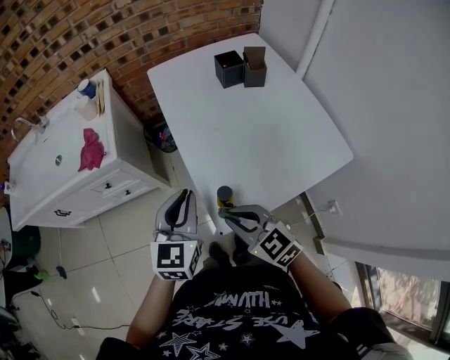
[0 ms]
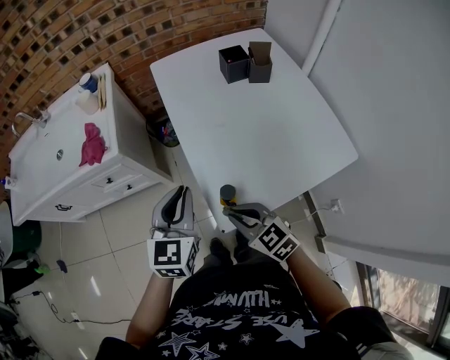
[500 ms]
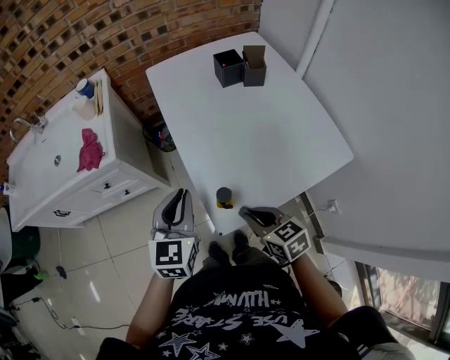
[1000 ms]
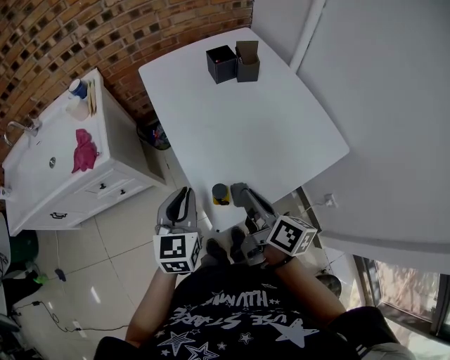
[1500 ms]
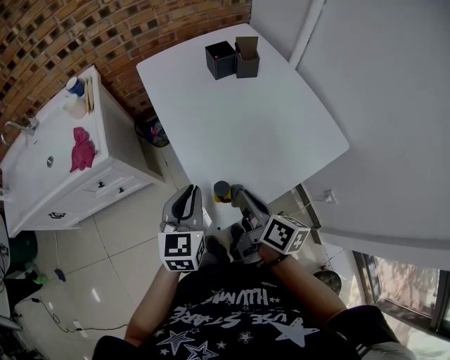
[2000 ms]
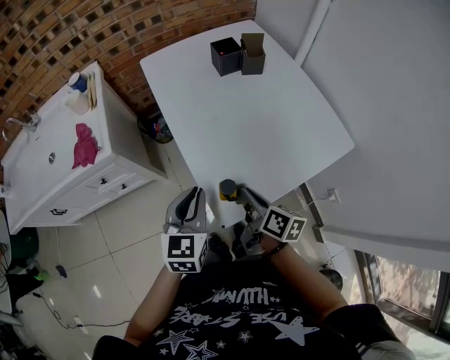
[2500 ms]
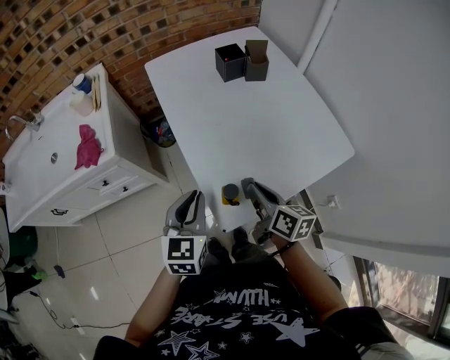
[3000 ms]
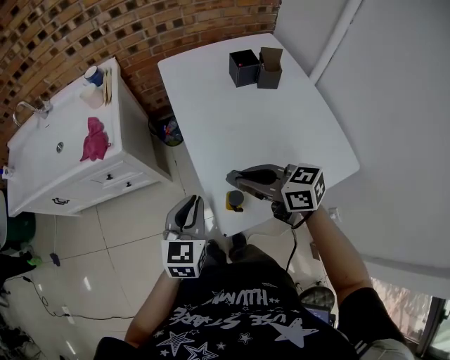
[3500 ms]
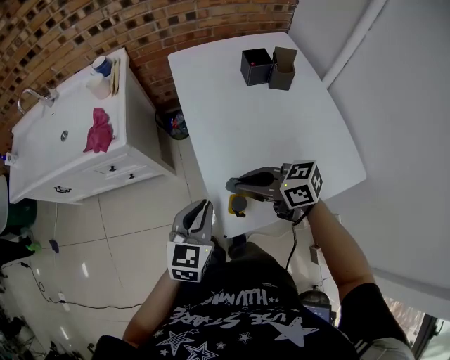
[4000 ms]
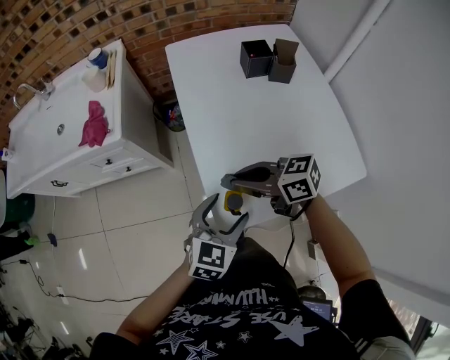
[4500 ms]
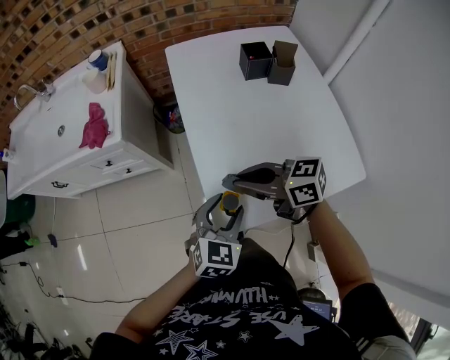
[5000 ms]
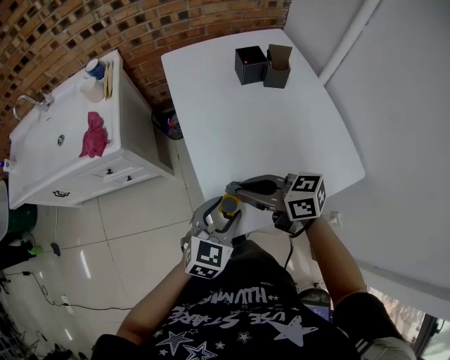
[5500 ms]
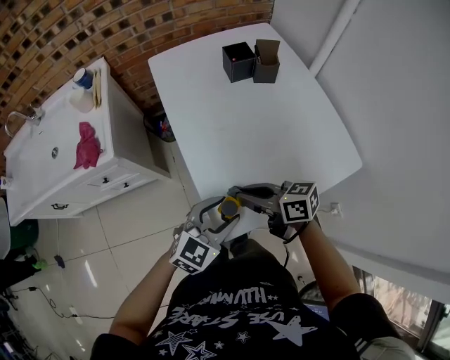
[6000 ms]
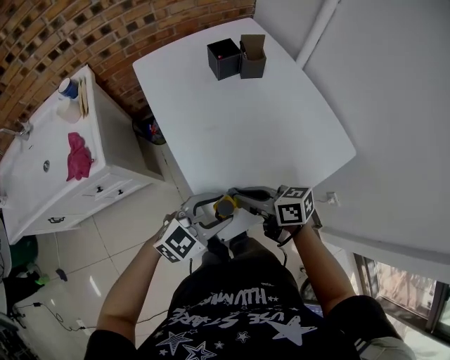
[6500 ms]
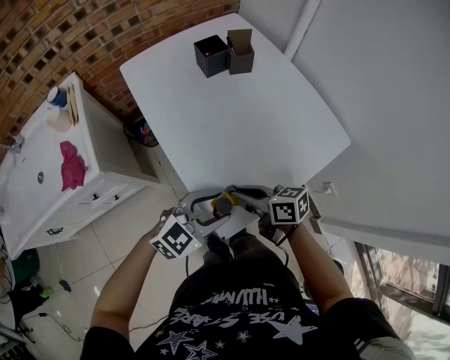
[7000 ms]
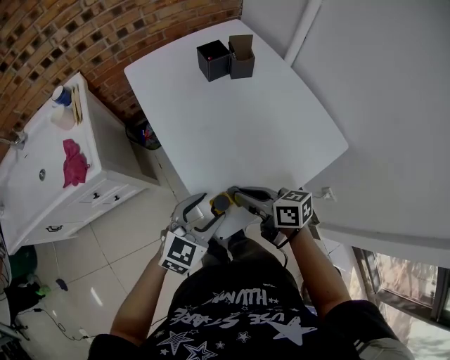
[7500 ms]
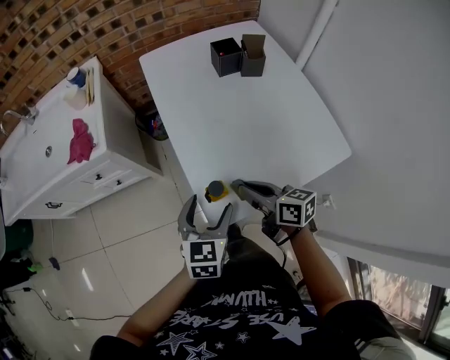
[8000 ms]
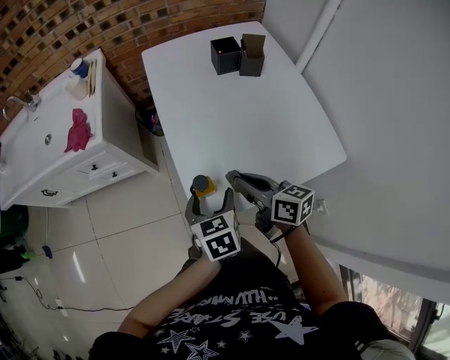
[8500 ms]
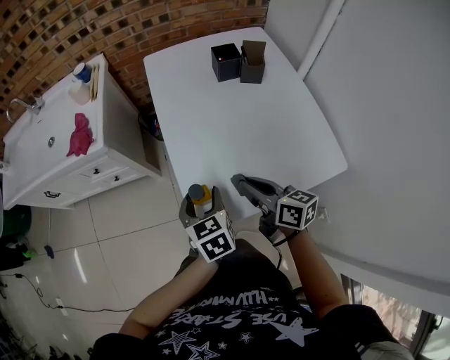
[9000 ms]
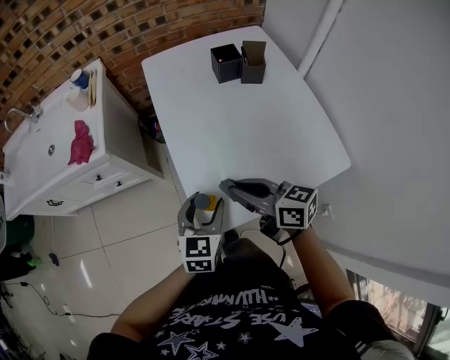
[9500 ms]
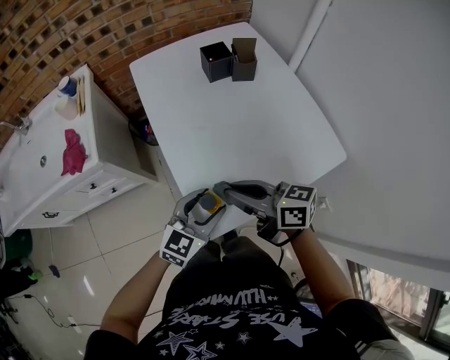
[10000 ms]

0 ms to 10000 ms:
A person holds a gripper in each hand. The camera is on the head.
0 ms to 2000 ms: The right gripper moves to the right, roughly 10 cm, and rolls clockwise, seen from behind, by roughly 60 degrees.
2000 ms to 4000 ms: The right gripper travels downward and back again, some 5 cm each way, and changes its angle by about 70 degrees.
4000 ms to 6000 ms: The left gripper goes some 5 cm to the right, rotates roughly 30 degrees, and opens its fingers. The right gripper swivels some 20 degrees.
6000 ms to 8000 ms: The left gripper rotates about 40 degrees, and opens.
8000 ms to 10000 ms: The right gripper is displaced upward by about 5 cm; the left gripper changes its angle by some 30 degrees.

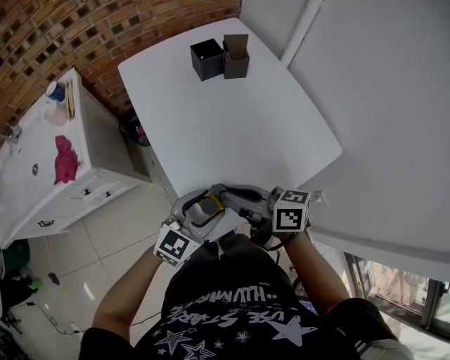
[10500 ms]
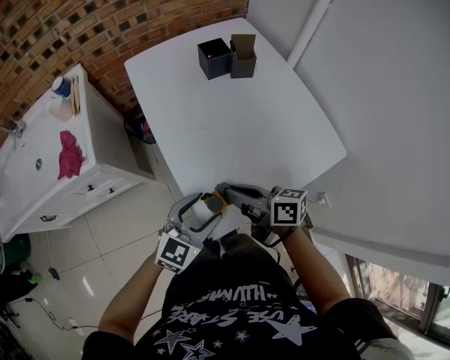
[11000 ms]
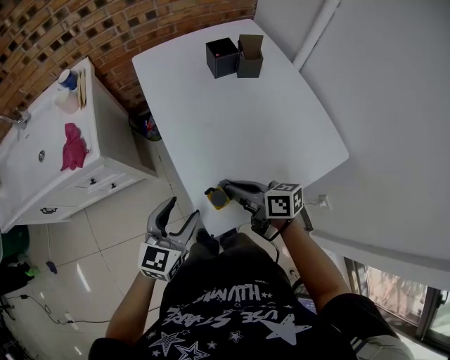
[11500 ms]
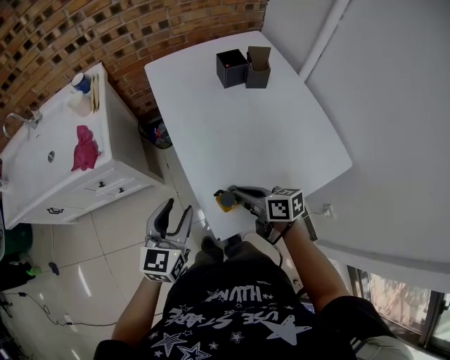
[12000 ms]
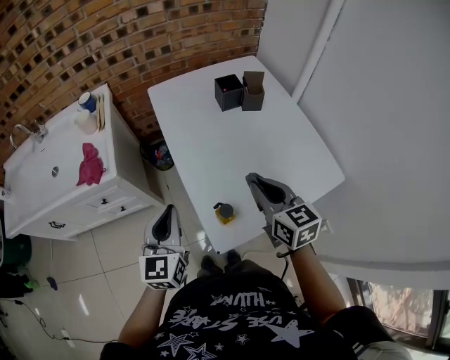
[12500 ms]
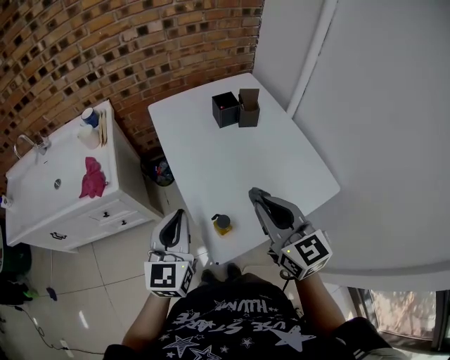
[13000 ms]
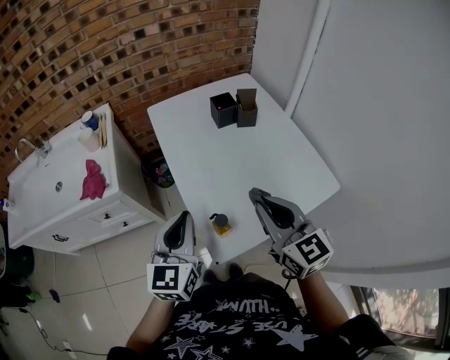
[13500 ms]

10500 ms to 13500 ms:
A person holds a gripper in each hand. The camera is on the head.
10500 ms to 12000 ms: The right gripper travels downward by roughly 10 cm, while the left gripper travels to the left by some 15 cm, and changes its angle by approximately 30 degrees.
12000 ms to 13500 ms: The right gripper goes roughly 20 cm upward, and changes its angle by approximately 50 degrees. Meanwhile the left gripper travels upward by roughly 10 cm, and closes up.

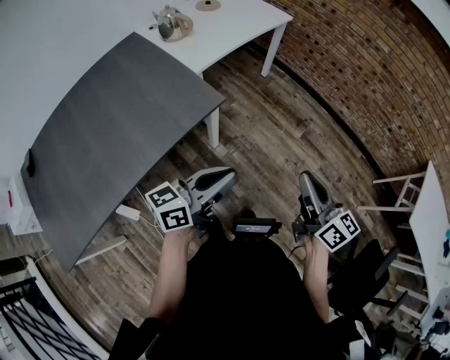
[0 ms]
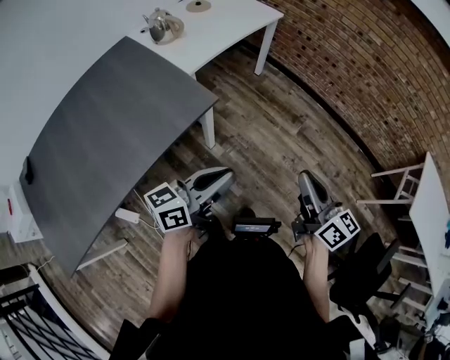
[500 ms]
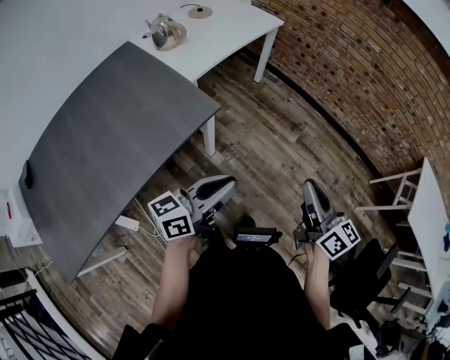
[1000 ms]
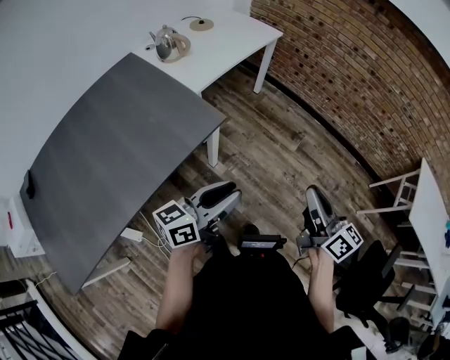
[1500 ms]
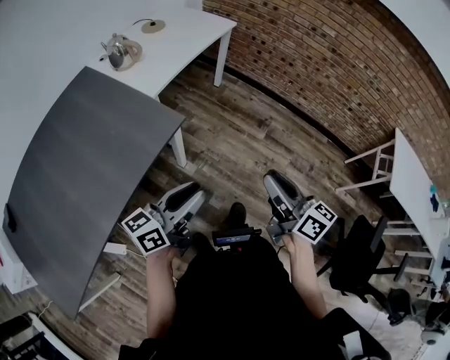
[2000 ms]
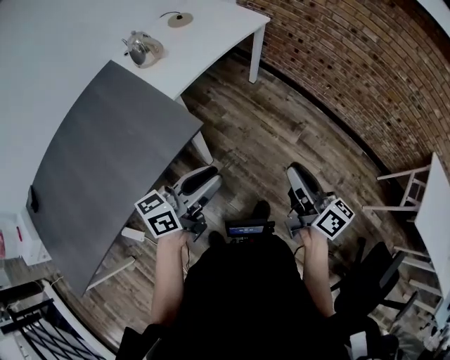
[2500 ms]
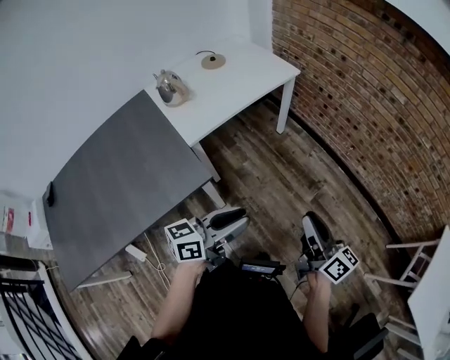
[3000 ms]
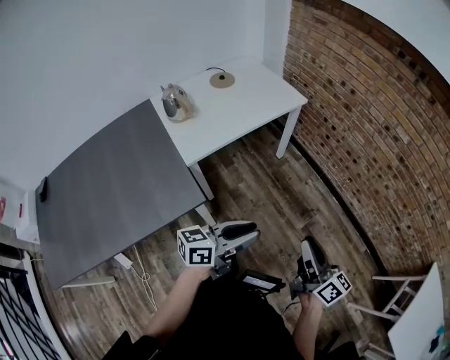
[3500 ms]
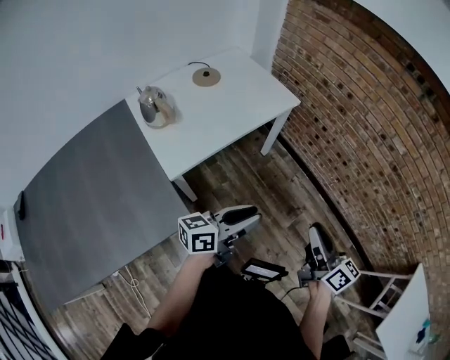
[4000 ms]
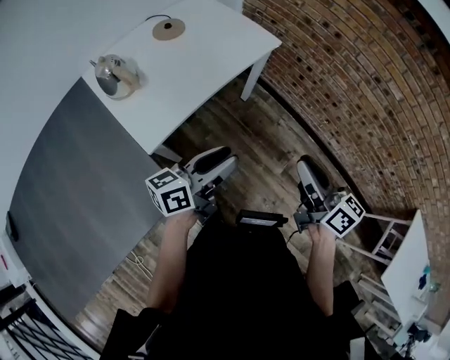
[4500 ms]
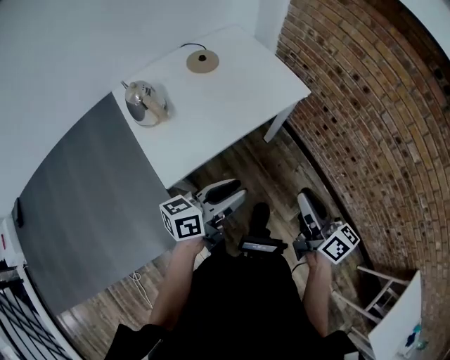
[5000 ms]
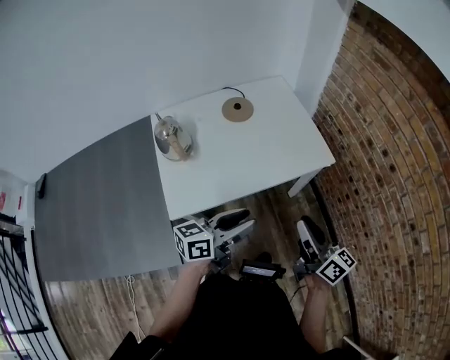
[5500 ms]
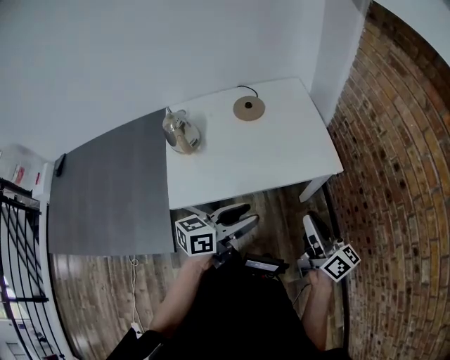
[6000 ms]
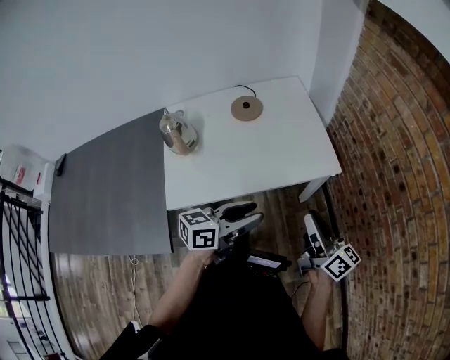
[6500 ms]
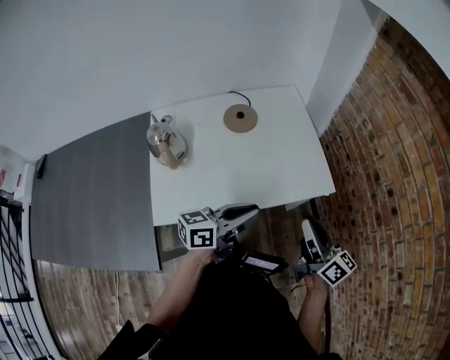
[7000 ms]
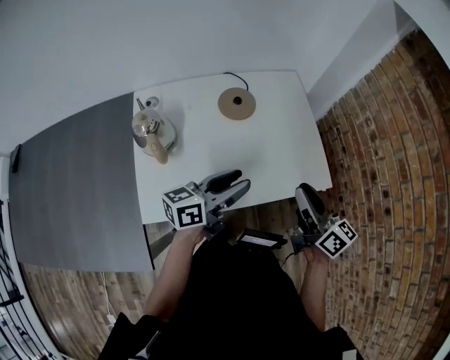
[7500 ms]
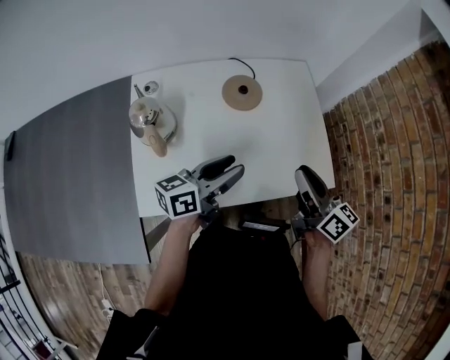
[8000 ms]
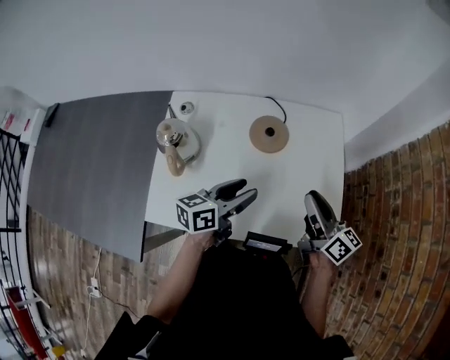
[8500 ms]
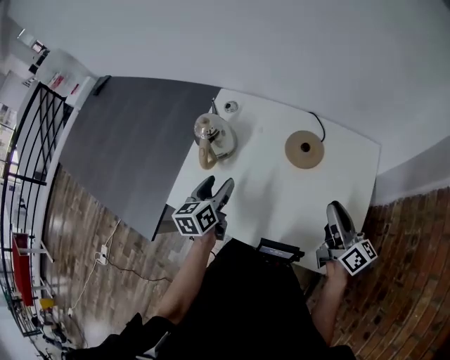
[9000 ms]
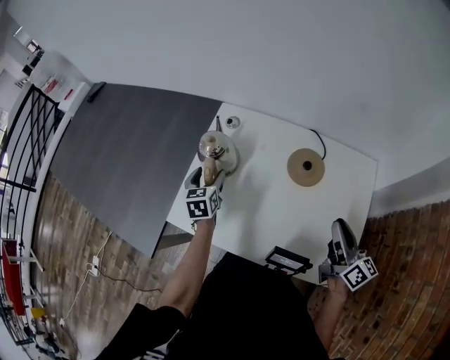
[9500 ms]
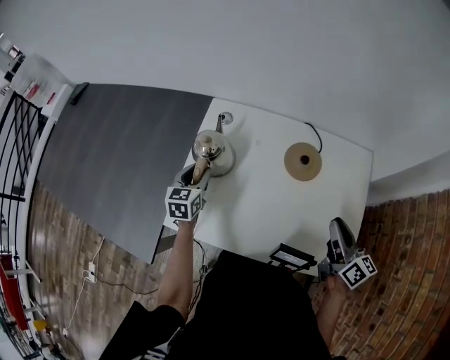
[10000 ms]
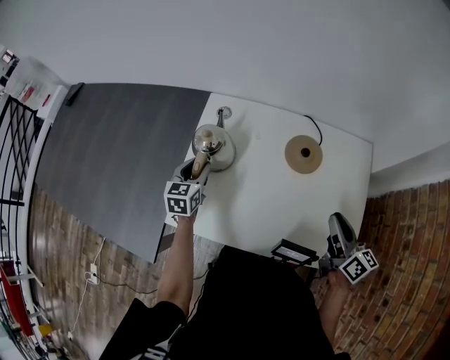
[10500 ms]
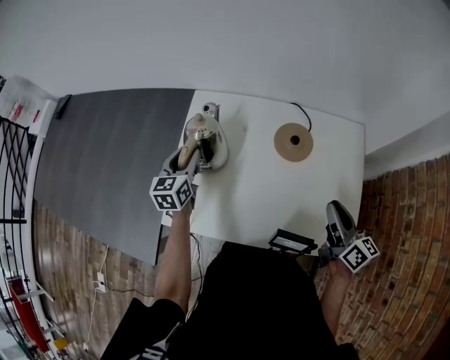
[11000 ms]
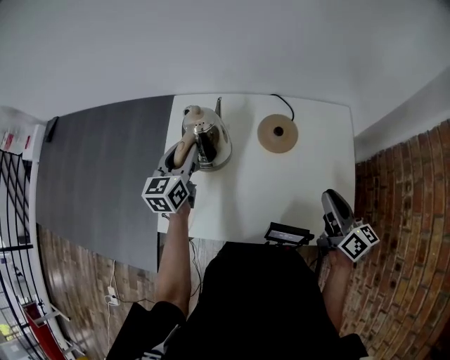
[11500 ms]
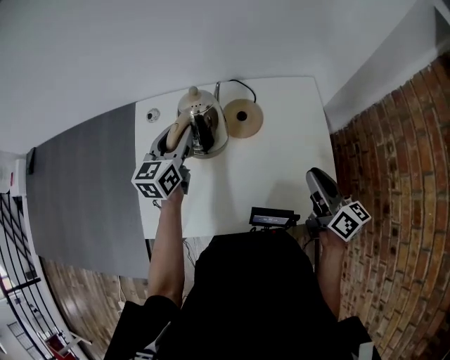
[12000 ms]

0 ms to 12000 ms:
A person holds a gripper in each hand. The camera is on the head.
0 ms to 2000 ms: The grippers move only a little.
2000 ms to 4000 ms: Both grippers move forward, roughly 35 cm.
4000 ms to 6000 ms: The left gripper ends up approximately 25 cm from where it was, and rotates roughly 30 degrees. The right gripper changes place by approximately 35 cm, and rotates roughly 30 degrees.
6000 ms to 8000 ms: Both grippers travel together forward and to the left, some 25 cm. The left gripper closes, then reopens.
8000 ms to 10000 ms: The left gripper moves roughly 30 cm, swivels some 70 degrees, and opens and closes again. Meanwhile the right gripper ends up about 10 cm from where it was.
10000 ms to 12000 ms: The right gripper changes place by approximately 5 cm, while the left gripper goes about 20 cm to the right and upward, and turns by about 30 degrees.

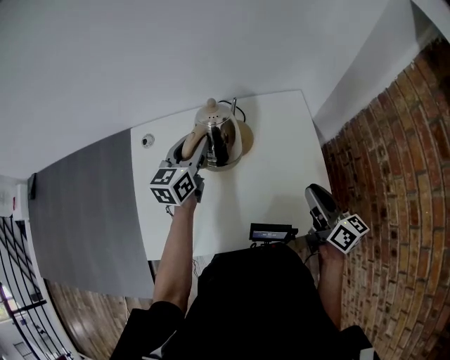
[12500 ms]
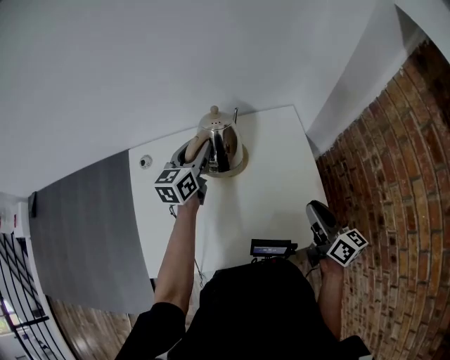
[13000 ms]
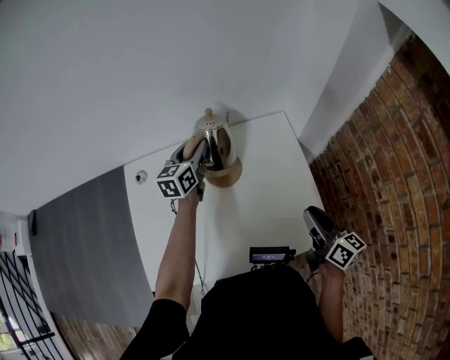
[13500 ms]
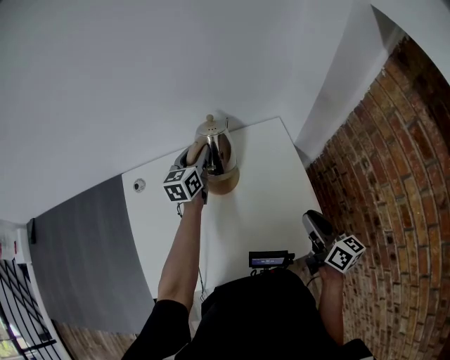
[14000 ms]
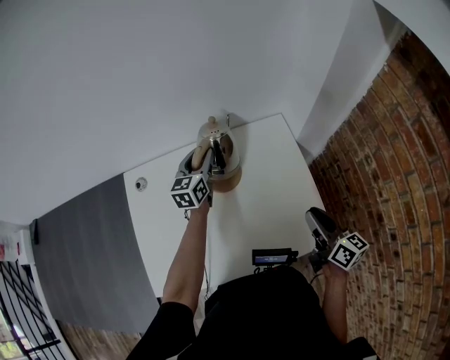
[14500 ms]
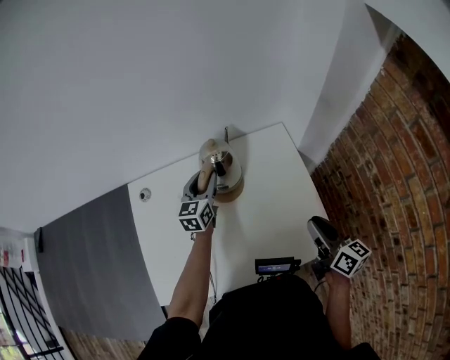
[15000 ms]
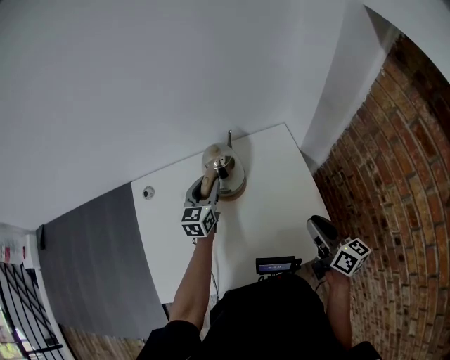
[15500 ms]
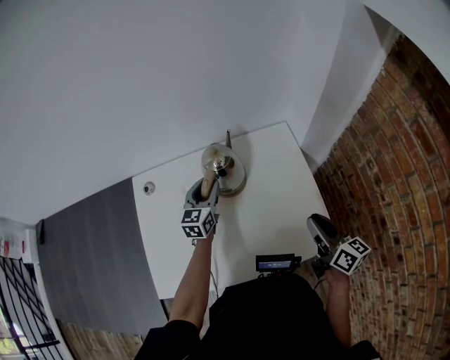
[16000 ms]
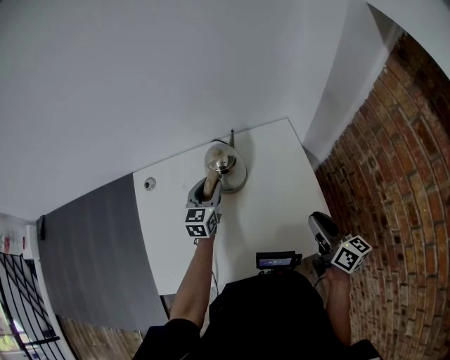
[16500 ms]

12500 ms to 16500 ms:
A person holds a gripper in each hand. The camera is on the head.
12500 ms to 14500 ms: The left gripper shifts about 10 cm forward and to the right.
14500 ms to 16500 ms: The left gripper goes roughly 10 cm backward.
